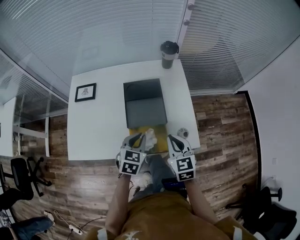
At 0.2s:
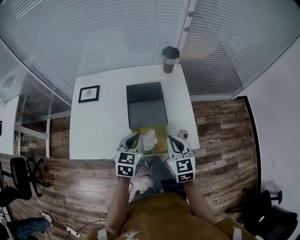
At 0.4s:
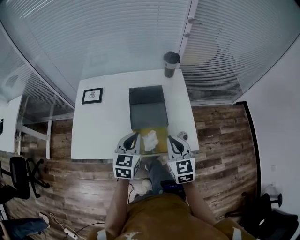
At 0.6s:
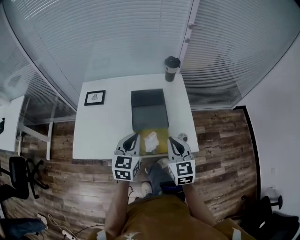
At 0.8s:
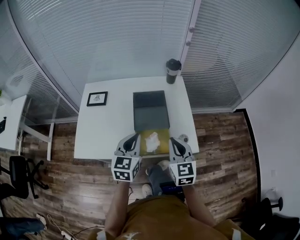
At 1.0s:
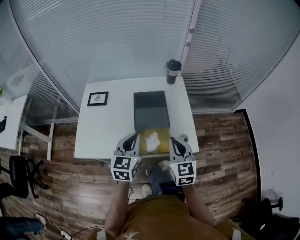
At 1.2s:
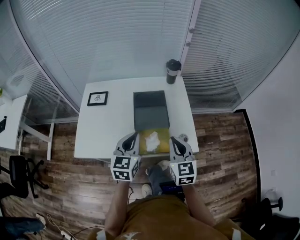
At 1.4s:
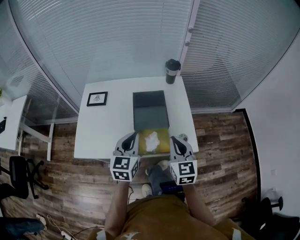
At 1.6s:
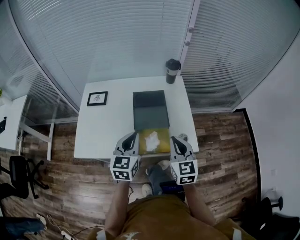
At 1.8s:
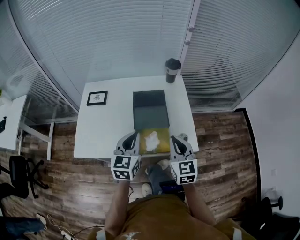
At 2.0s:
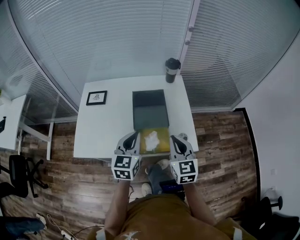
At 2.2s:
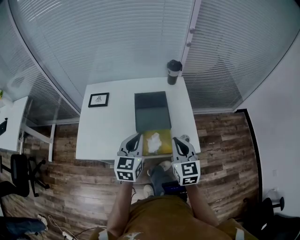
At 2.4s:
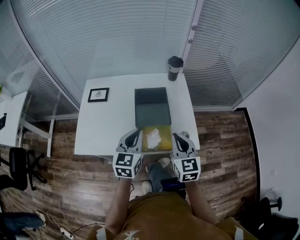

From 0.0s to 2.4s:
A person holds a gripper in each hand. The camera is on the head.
From 0.0s to 1.2s: The right gripper goes approximately 10 cm upward. The left gripper travels upward and to the left by about 15 cm, and swivels some 30 degrees.
From 1.2s to 2.4s: Neither gripper changes place.

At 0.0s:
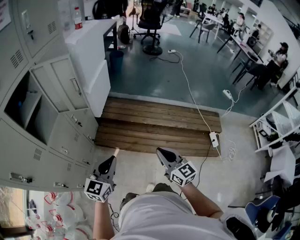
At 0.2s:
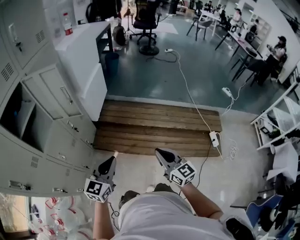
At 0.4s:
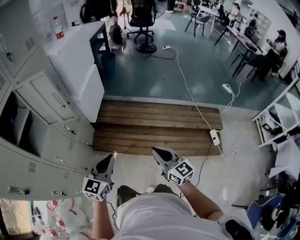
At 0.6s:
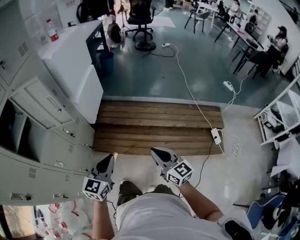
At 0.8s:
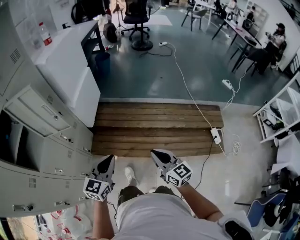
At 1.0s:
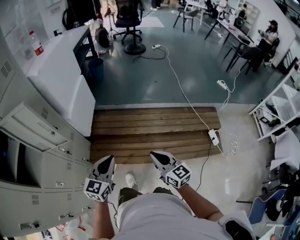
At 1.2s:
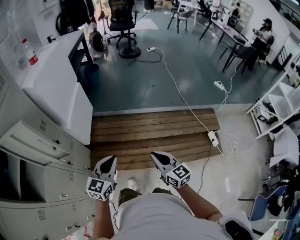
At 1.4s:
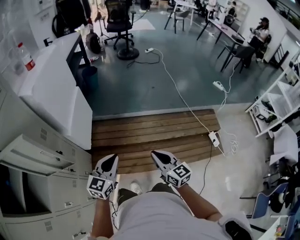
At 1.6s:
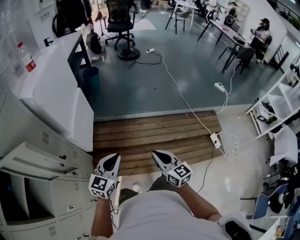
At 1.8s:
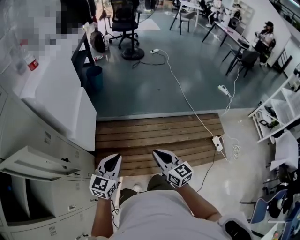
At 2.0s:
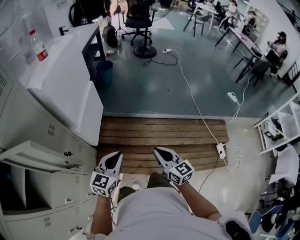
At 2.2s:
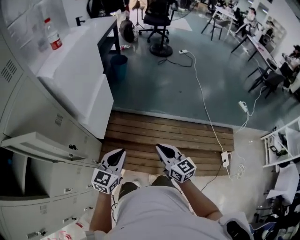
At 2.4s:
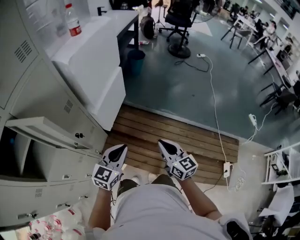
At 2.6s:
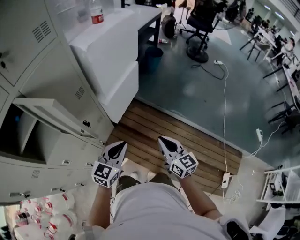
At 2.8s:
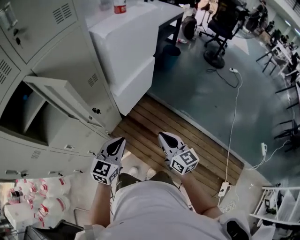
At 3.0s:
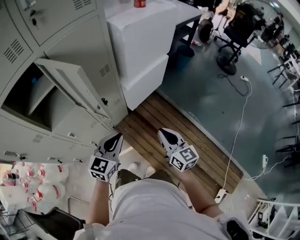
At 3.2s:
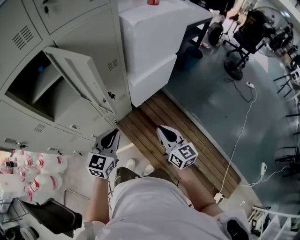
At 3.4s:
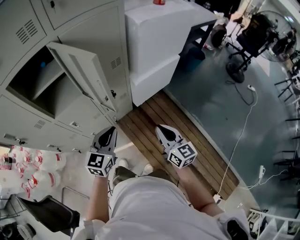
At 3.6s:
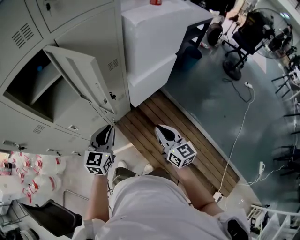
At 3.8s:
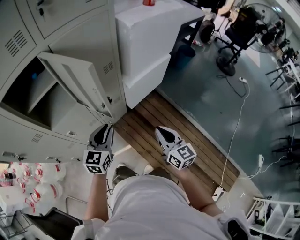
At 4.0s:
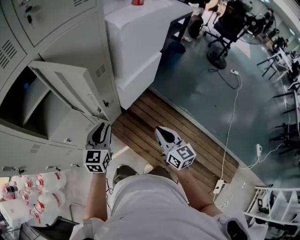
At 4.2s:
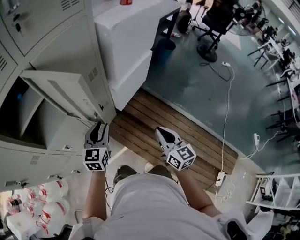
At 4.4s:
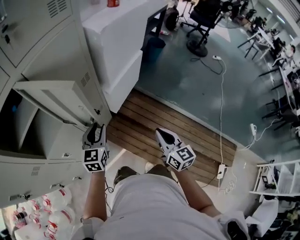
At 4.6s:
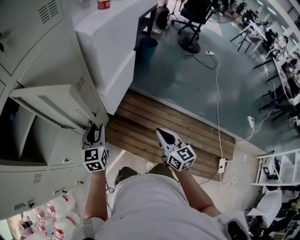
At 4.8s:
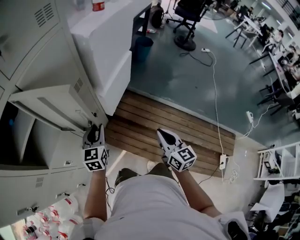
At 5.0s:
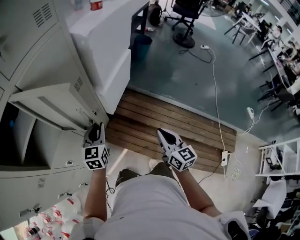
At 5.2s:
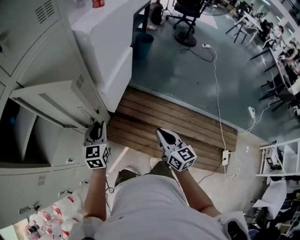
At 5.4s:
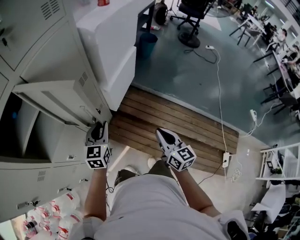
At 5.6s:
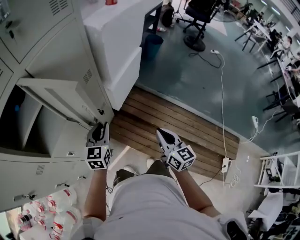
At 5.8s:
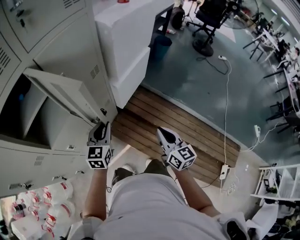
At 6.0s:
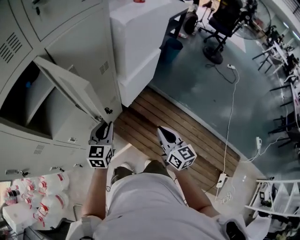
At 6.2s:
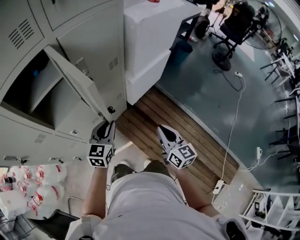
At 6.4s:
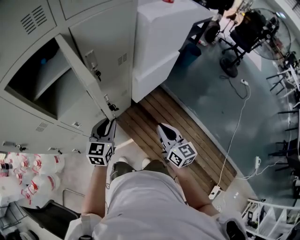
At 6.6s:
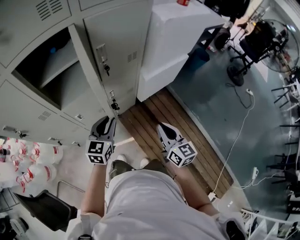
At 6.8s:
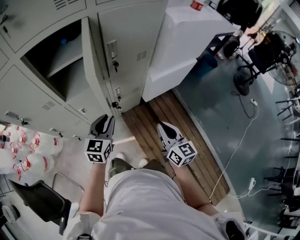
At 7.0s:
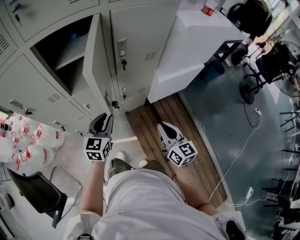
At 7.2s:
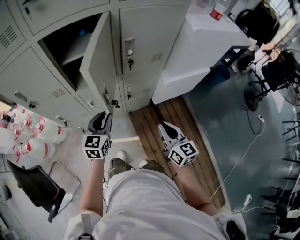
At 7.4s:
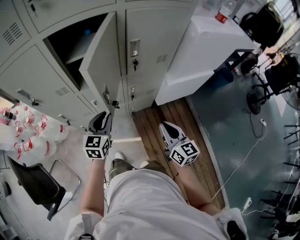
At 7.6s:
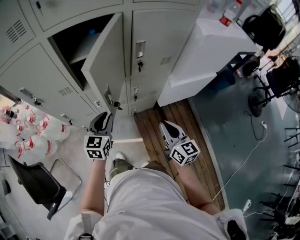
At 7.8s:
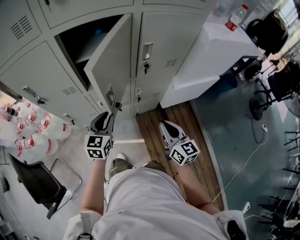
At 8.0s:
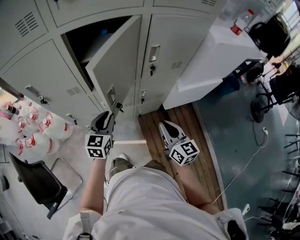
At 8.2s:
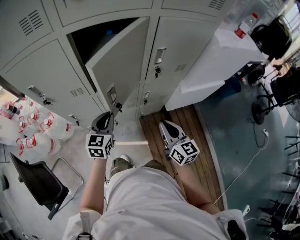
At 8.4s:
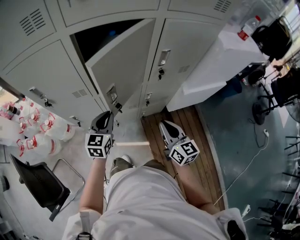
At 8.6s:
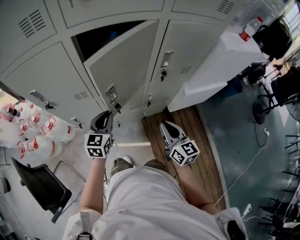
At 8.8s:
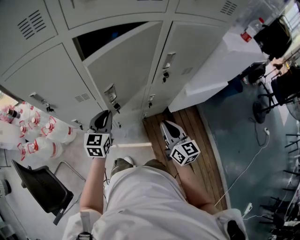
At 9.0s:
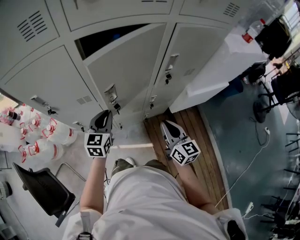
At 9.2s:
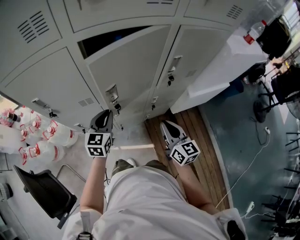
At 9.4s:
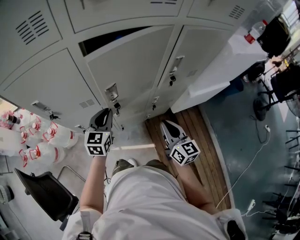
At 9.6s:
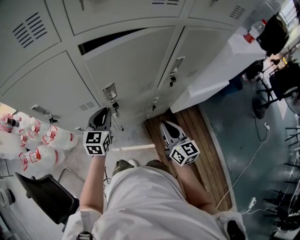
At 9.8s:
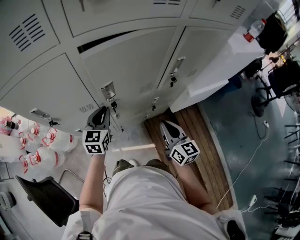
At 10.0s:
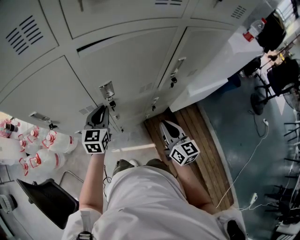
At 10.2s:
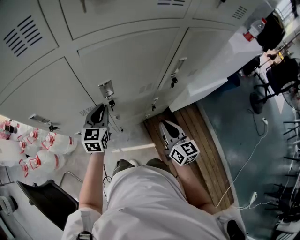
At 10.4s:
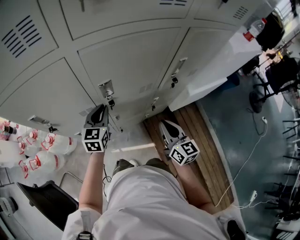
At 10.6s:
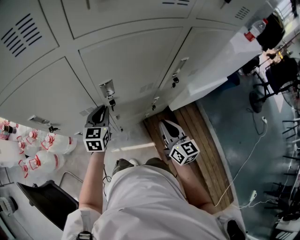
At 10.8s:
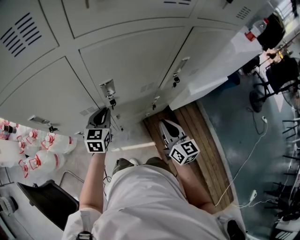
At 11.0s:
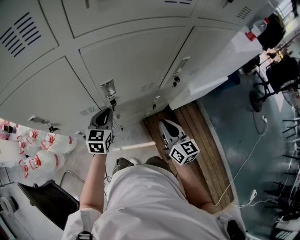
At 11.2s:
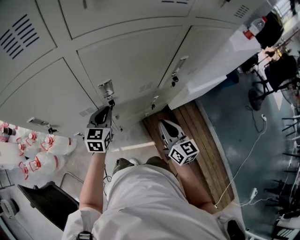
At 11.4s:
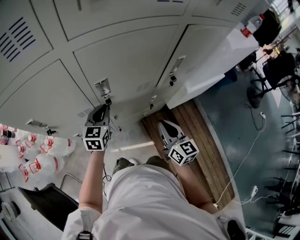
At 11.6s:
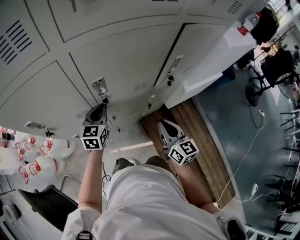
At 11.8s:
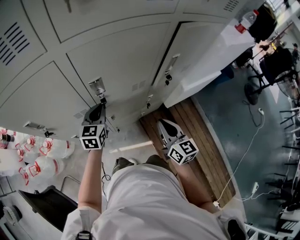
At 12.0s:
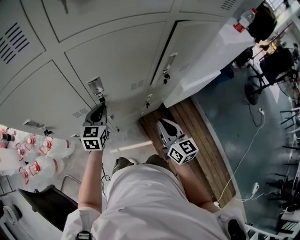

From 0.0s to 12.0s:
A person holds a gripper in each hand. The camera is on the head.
From 0.0s to 1.6s: Both grippers move forward, roughly 30 cm.
From 1.6s to 3.0s: The left gripper moves some 15 cm, and turns by about 50 degrees. The right gripper shifts by about 20 cm, and swivels roughly 40 degrees.
From 3.0s to 4.4s: The left gripper is displaced forward and to the left by approximately 15 cm, and opens up.
From 4.4s to 6.0s: The grippers make only small movements.
From 6.0s to 7.6s: The left gripper changes place by approximately 15 cm, and rotates roughly 30 degrees. Meanwhile the right gripper ends up approximately 15 cm from where it was, and turns by approximately 30 degrees.
From 7.6s to 9.0s: The grippers both shift to the left and forward by some 15 cm.
From 9.0s to 10.4s: The left gripper shifts about 10 cm forward. Meanwhile the right gripper moves some 5 cm.
From 10.4s to 12.0s: The grippers stay close to where they were, moving slightly.

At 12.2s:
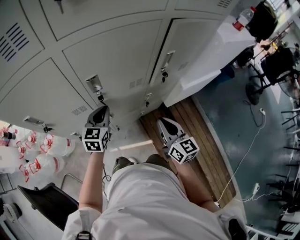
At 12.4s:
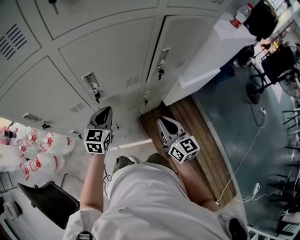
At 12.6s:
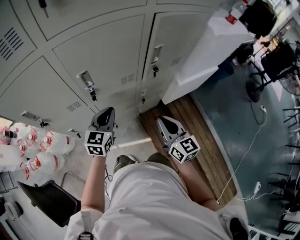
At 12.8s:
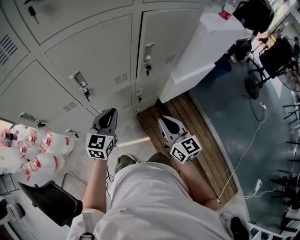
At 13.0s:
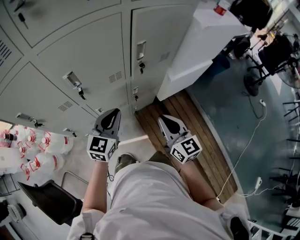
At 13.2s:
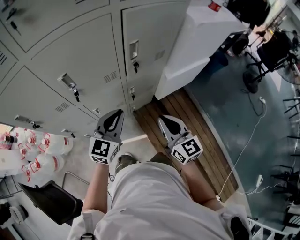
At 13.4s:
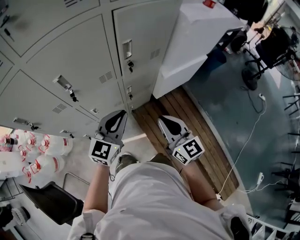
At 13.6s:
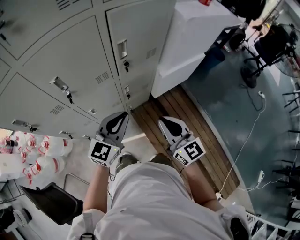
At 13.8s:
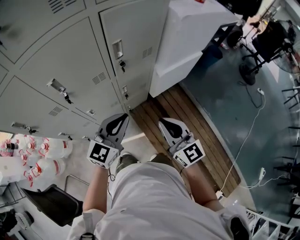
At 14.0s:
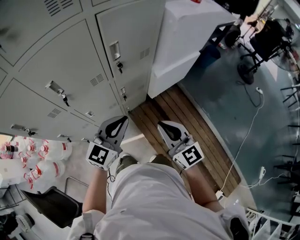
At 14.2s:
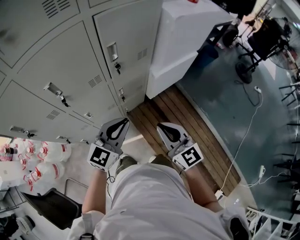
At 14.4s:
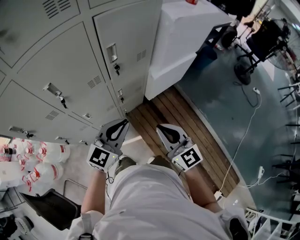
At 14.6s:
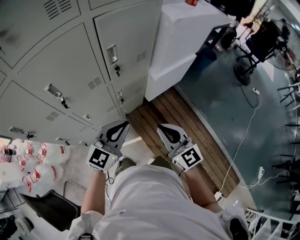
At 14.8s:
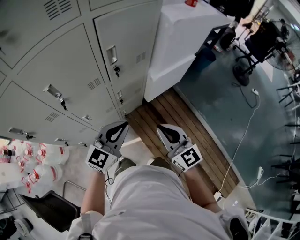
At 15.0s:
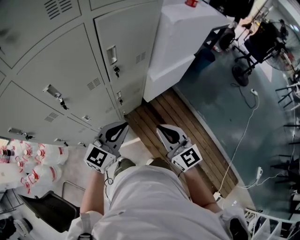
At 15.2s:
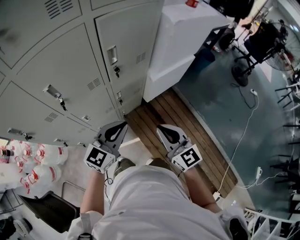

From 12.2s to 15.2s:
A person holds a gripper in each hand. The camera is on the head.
From 12.2s to 13.8s: The right gripper travels to the right, backward and upward by roughly 20 cm, while the left gripper shifts some 30 cm to the right and backward, and swivels some 30 degrees.
From 13.8s to 15.2s: The grippers stay close to where they were, moving slightly.

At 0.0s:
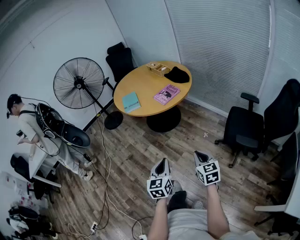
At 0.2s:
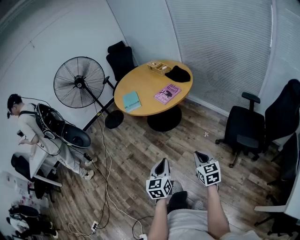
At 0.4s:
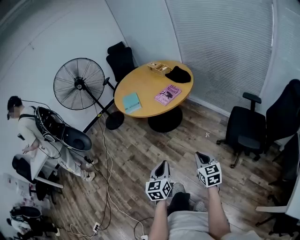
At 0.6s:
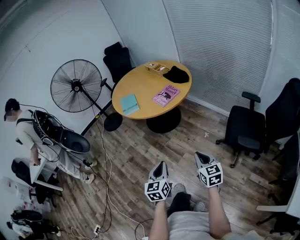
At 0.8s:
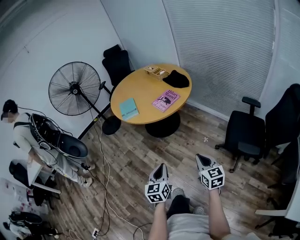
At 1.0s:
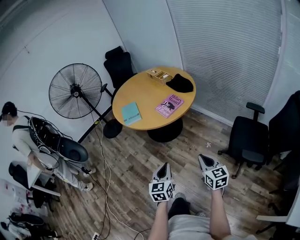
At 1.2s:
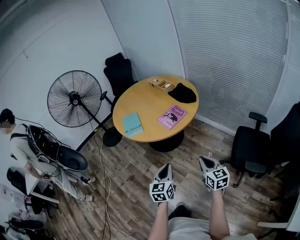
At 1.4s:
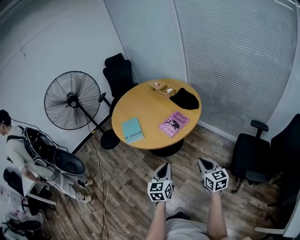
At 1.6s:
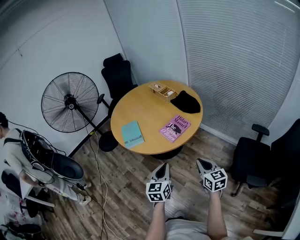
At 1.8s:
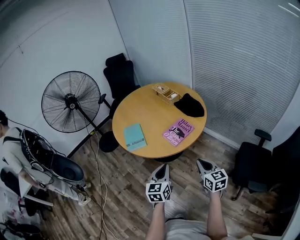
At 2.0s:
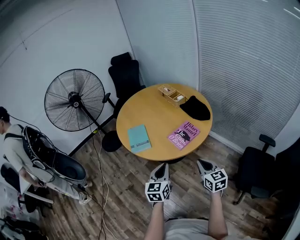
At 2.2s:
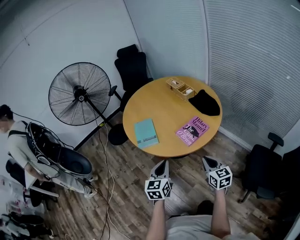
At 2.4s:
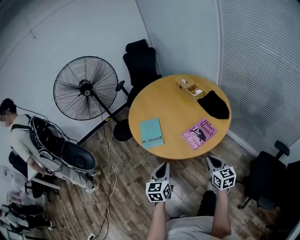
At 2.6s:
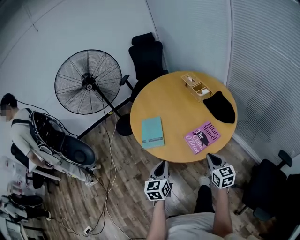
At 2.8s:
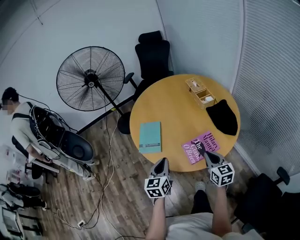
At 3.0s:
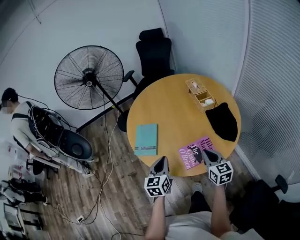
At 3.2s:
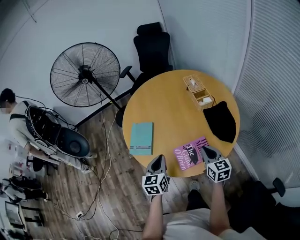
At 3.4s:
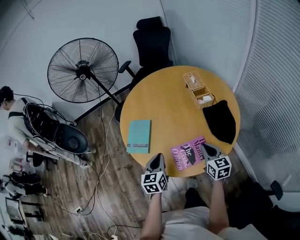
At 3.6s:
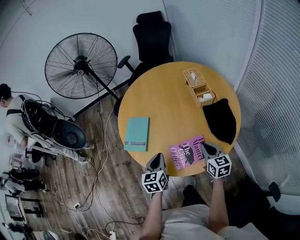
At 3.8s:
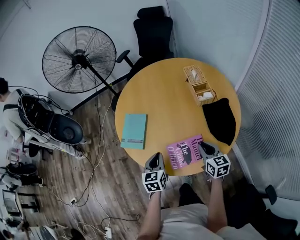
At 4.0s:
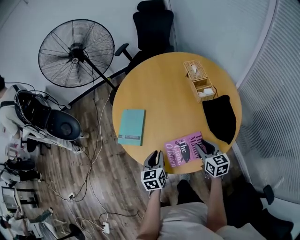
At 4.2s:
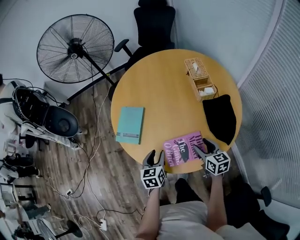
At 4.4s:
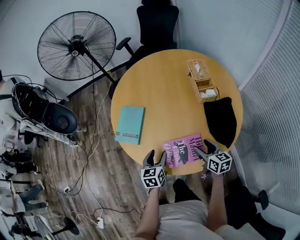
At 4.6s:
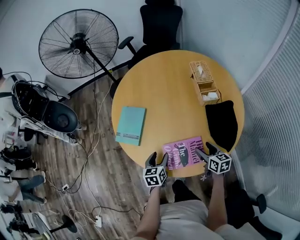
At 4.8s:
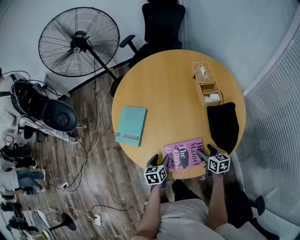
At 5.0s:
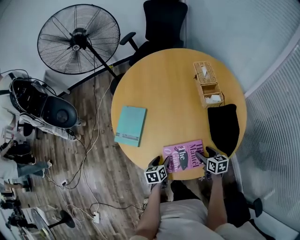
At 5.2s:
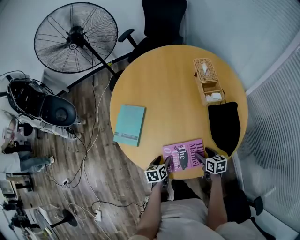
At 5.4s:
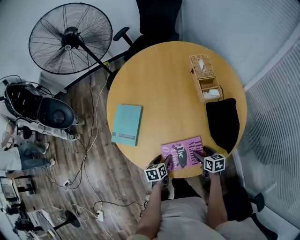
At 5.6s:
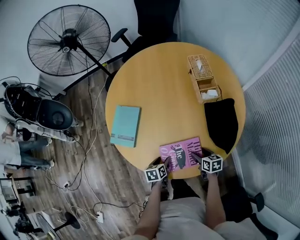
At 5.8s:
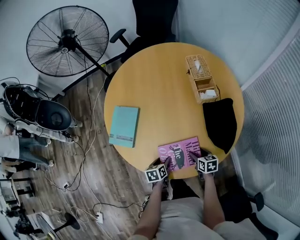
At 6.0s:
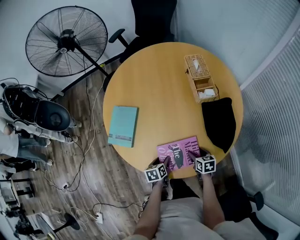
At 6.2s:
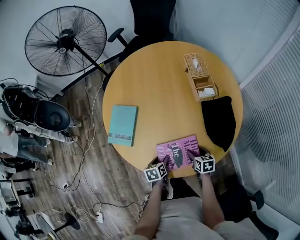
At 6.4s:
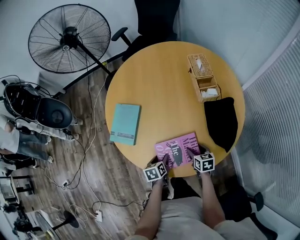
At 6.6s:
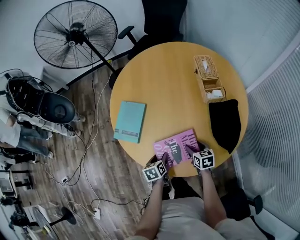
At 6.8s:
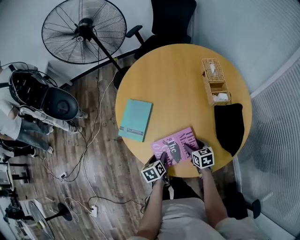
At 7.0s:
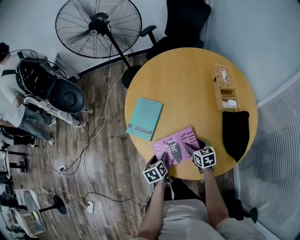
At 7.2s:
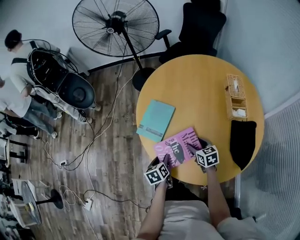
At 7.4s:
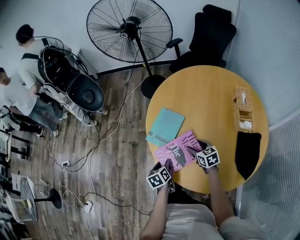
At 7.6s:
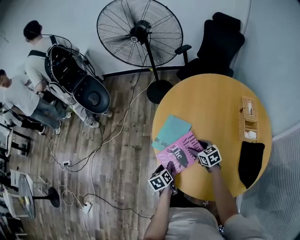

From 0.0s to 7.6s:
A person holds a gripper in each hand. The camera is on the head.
From 0.0s to 1.6s: Both grippers move forward, approximately 30 cm.
From 1.6s to 3.0s: The grippers both shift forward by some 30 cm. The right gripper swivels roughly 20 degrees. The left gripper changes its angle by approximately 30 degrees.
From 3.0s to 4.6s: The left gripper shifts about 15 cm downward, turns by about 20 degrees, and opens up, while the right gripper goes roughly 20 cm downward, to the right and forward, turns by approximately 30 degrees, and opens its fingers.
From 4.6s to 6.0s: The grippers both shift downward by about 10 cm. The left gripper changes its angle by roughly 20 degrees.
From 6.0s to 7.6s: The right gripper ends up roughly 35 cm from where it was, and turns by approximately 40 degrees. Meanwhile the left gripper shifts by about 25 cm, and turns by approximately 40 degrees.
